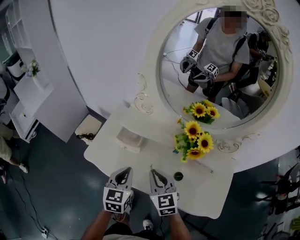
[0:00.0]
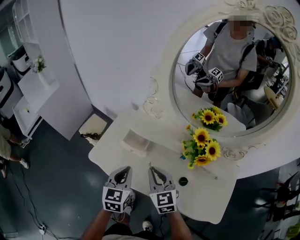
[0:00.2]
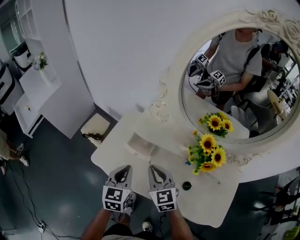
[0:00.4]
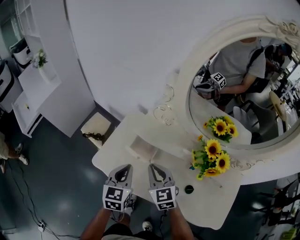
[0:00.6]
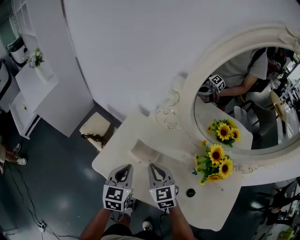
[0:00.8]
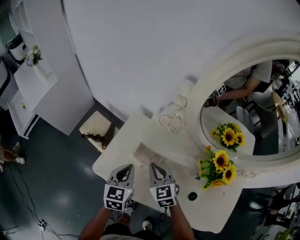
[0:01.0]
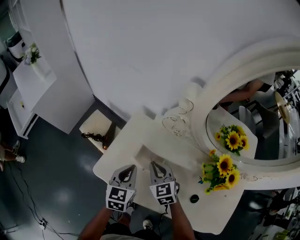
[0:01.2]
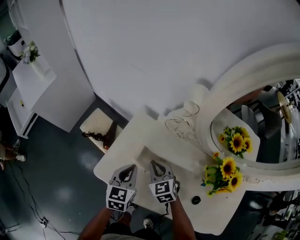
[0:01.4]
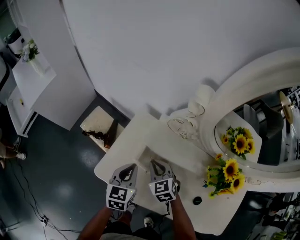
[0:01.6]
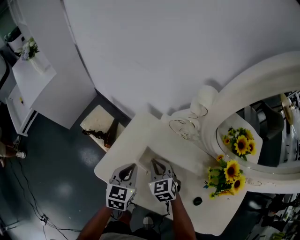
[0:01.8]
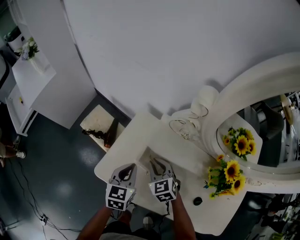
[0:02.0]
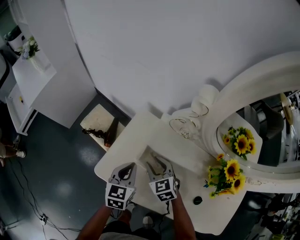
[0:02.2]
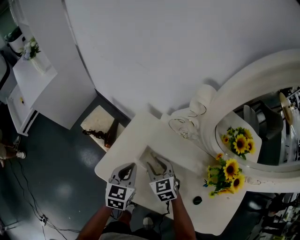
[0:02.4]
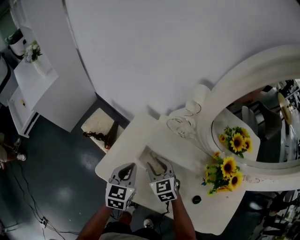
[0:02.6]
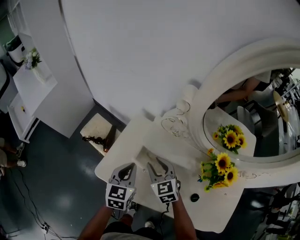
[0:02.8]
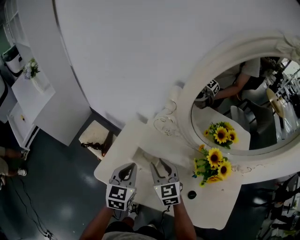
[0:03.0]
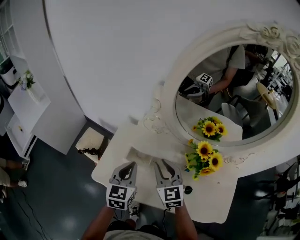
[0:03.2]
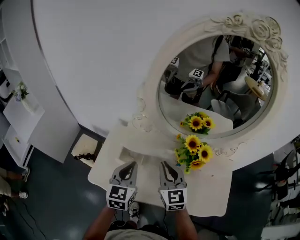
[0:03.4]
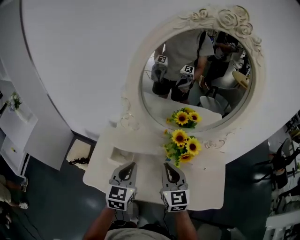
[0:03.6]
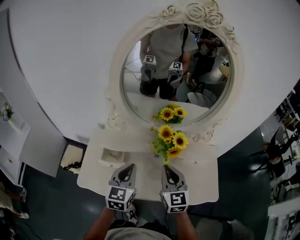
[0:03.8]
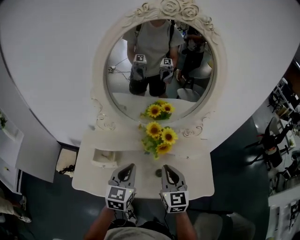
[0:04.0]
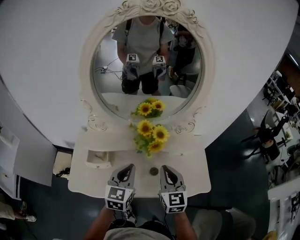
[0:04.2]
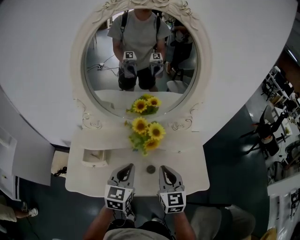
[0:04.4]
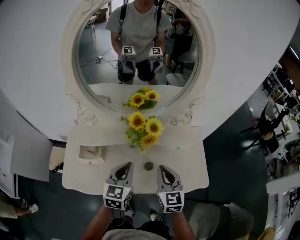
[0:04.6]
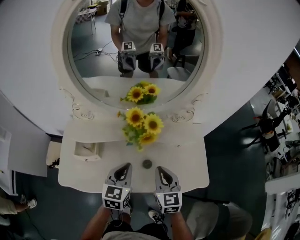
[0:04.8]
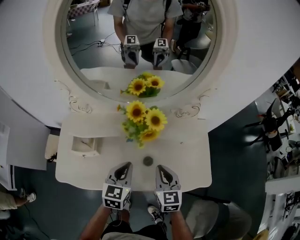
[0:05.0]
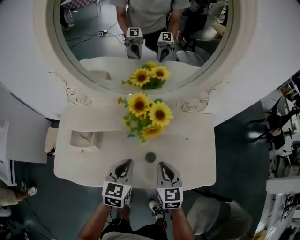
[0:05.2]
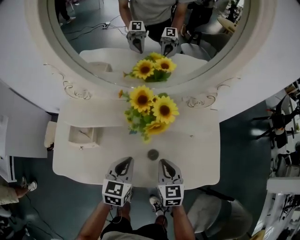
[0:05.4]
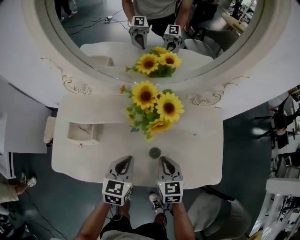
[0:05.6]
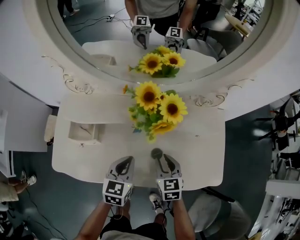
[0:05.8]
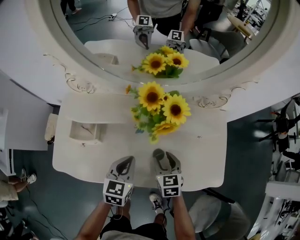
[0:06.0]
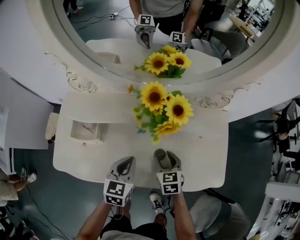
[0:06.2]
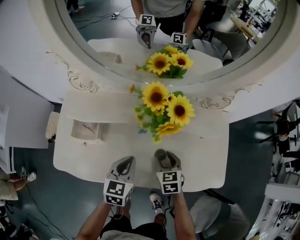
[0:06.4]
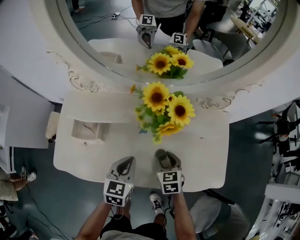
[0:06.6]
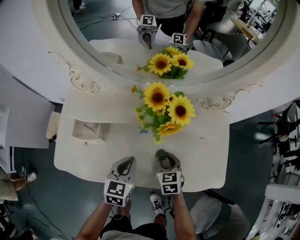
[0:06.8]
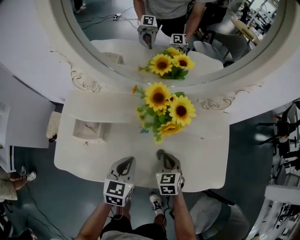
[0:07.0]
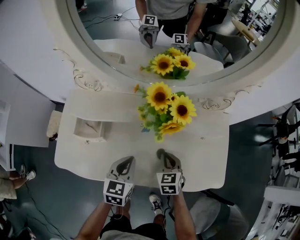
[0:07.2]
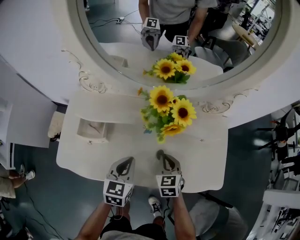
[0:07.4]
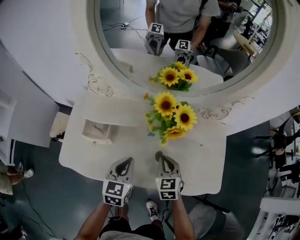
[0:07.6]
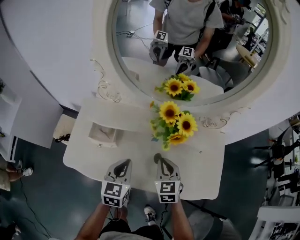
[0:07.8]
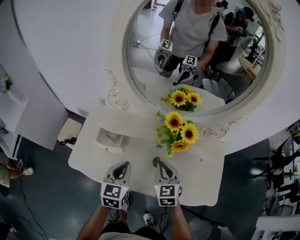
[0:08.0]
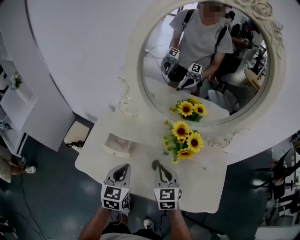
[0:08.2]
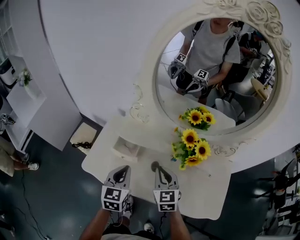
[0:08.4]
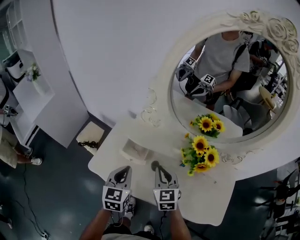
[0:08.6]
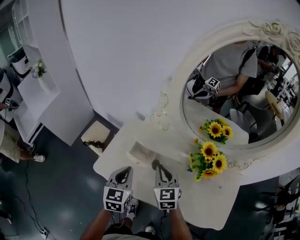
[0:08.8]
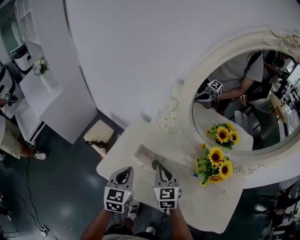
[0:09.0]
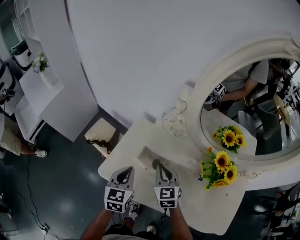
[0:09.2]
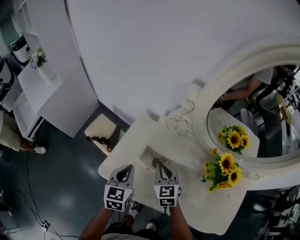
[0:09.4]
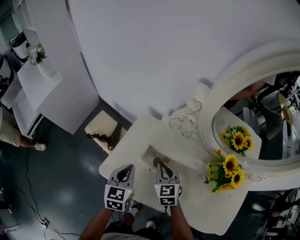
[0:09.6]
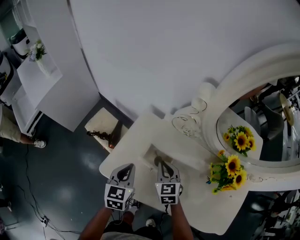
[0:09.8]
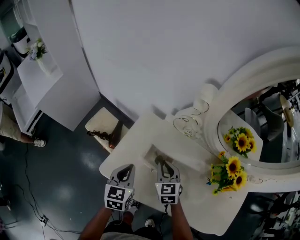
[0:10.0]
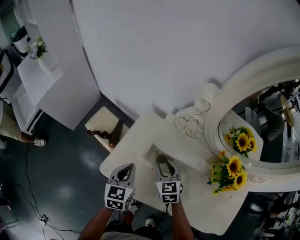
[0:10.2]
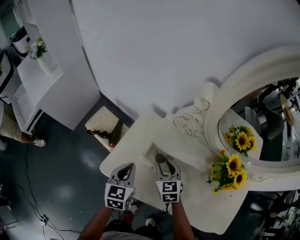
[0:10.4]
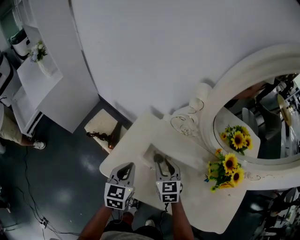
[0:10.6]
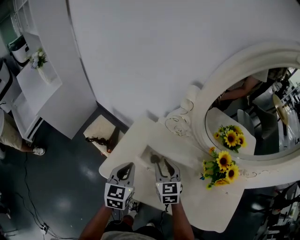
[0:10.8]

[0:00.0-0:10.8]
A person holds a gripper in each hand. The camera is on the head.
0:00.0 to 0:01.6: The left gripper goes some 20 cm forward and to the left; the right gripper shifts about 25 cm forward, to the left and downward, and swivels roughly 20 degrees.
0:01.6 to 0:03.0: Both grippers travel together upward, approximately 10 cm. The right gripper opens.
0:03.0 to 0:04.6: The left gripper ends up about 30 cm from where it was, and swivels roughly 30 degrees. Meanwhile the right gripper changes place by about 35 cm, rotates approximately 40 degrees, and closes up.
0:04.6 to 0:06.2: The grippers both shift downward by about 20 cm. The right gripper rotates roughly 30 degrees, and opens.
0:06.2 to 0:07.8: Both grippers travel together upward and to the left, some 10 cm. The right gripper closes.
0:07.8 to 0:09.2: The right gripper heads to the left and forward, covering approximately 25 cm, and swivels about 20 degrees; the left gripper travels to the left by approximately 20 cm, and swivels some 20 degrees.
0:09.2 to 0:10.8: The right gripper opens up.

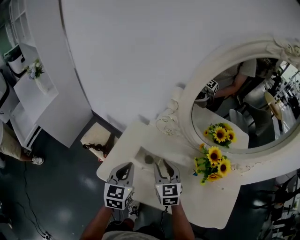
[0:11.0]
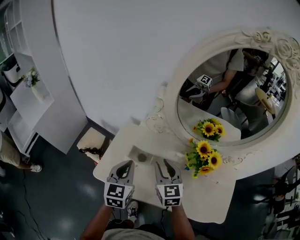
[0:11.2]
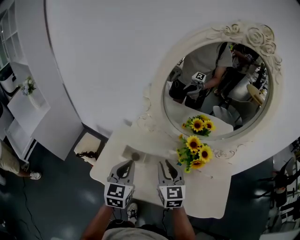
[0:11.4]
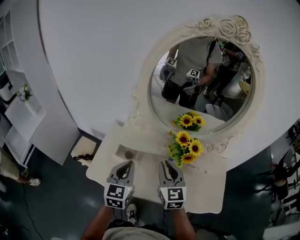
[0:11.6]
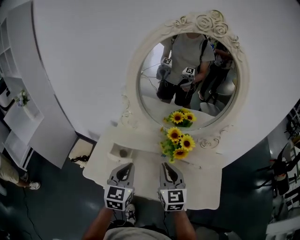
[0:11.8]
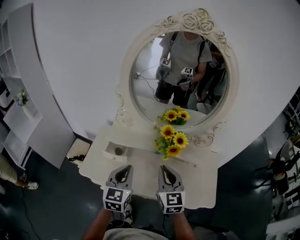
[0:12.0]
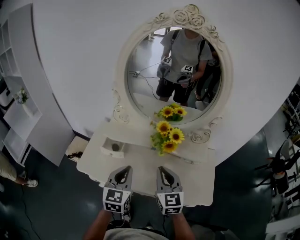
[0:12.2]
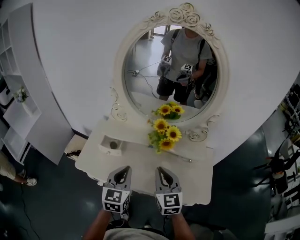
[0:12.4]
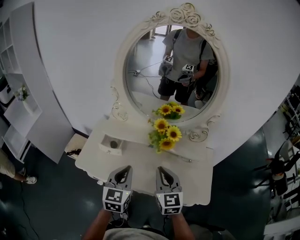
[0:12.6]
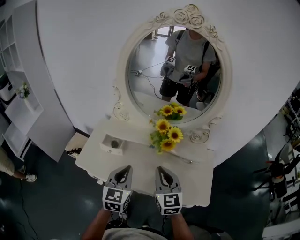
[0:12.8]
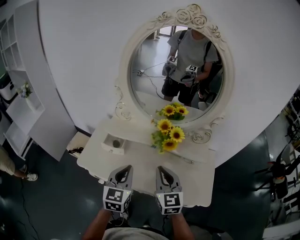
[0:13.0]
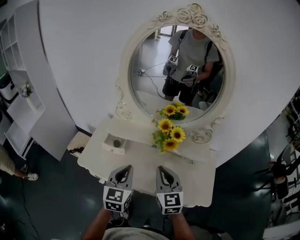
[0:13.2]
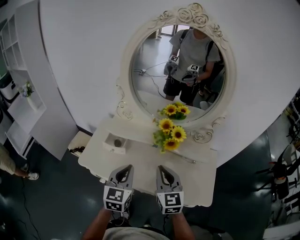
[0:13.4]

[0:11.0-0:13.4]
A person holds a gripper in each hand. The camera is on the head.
0:11.0 to 0:12.2: The right gripper is displaced to the right, backward and upward by approximately 30 cm, changes its angle by some 20 degrees, and closes up. Meanwhile the left gripper goes roughly 25 cm to the right and backward.
0:12.2 to 0:13.4: There are only small adjustments of the grippers.

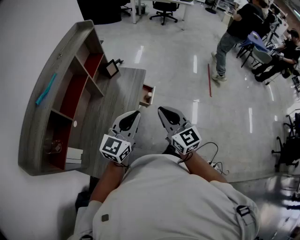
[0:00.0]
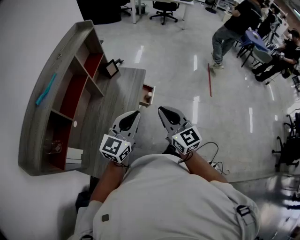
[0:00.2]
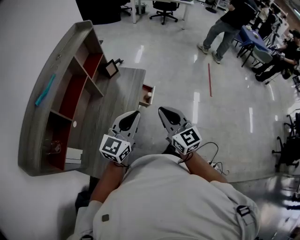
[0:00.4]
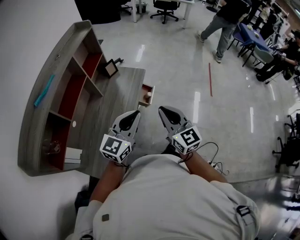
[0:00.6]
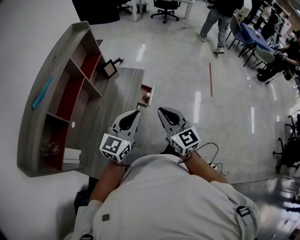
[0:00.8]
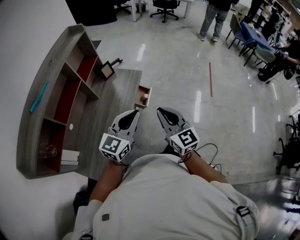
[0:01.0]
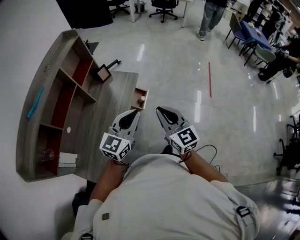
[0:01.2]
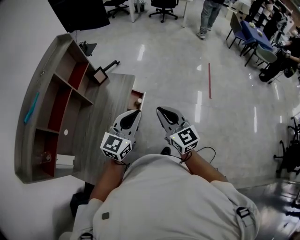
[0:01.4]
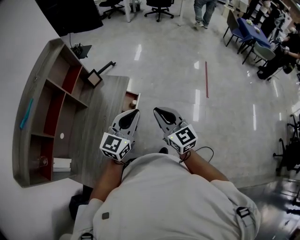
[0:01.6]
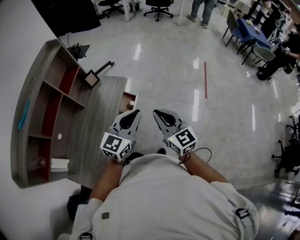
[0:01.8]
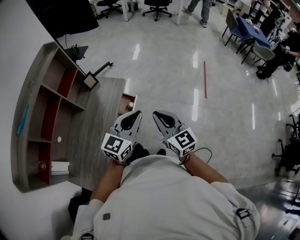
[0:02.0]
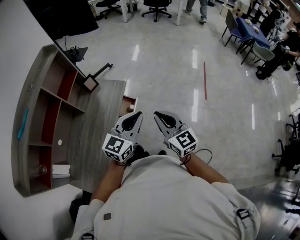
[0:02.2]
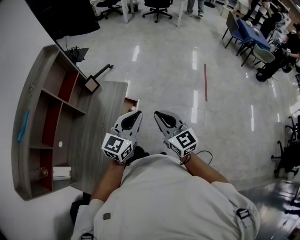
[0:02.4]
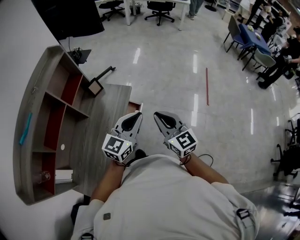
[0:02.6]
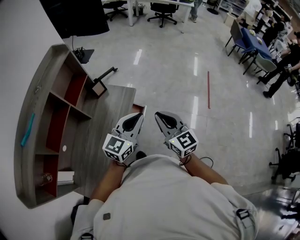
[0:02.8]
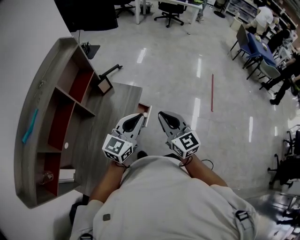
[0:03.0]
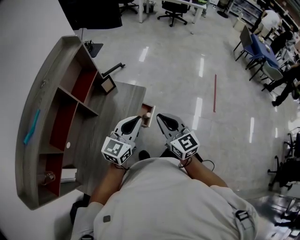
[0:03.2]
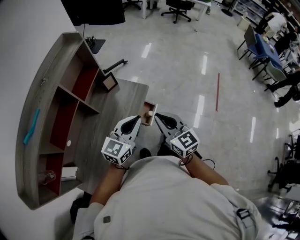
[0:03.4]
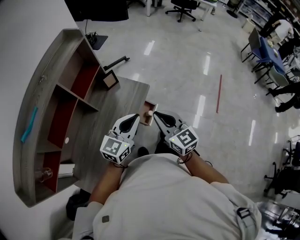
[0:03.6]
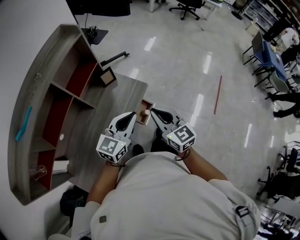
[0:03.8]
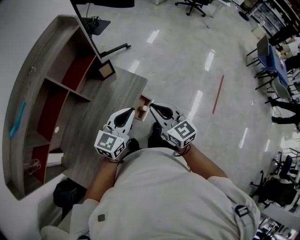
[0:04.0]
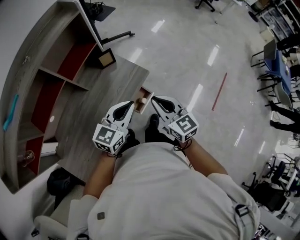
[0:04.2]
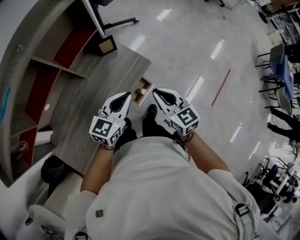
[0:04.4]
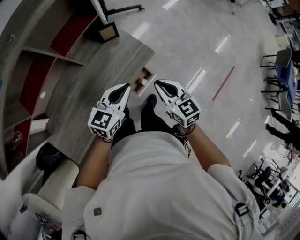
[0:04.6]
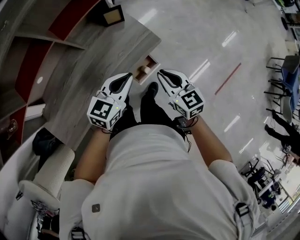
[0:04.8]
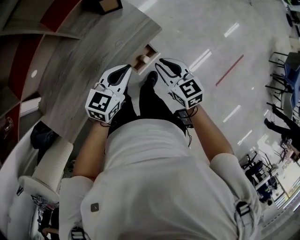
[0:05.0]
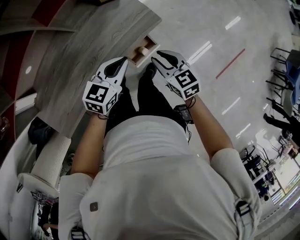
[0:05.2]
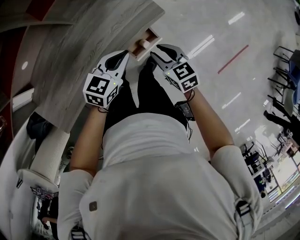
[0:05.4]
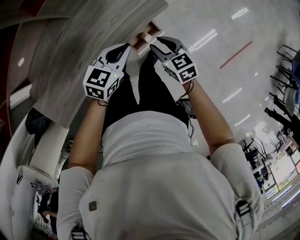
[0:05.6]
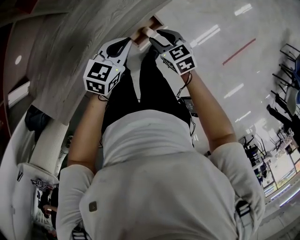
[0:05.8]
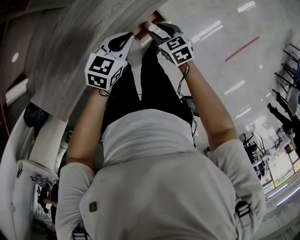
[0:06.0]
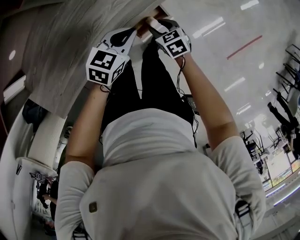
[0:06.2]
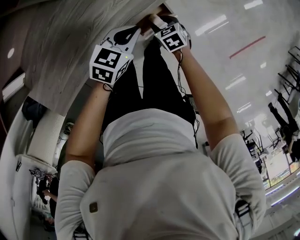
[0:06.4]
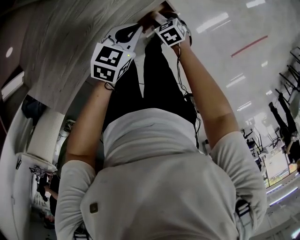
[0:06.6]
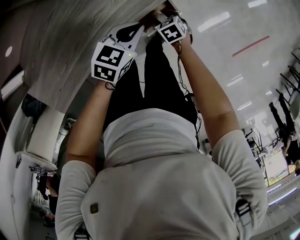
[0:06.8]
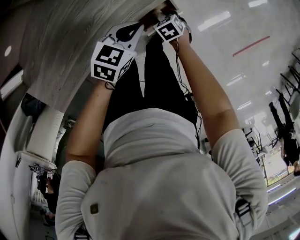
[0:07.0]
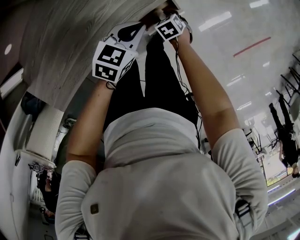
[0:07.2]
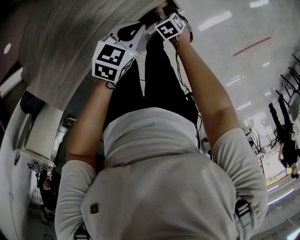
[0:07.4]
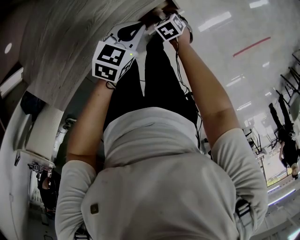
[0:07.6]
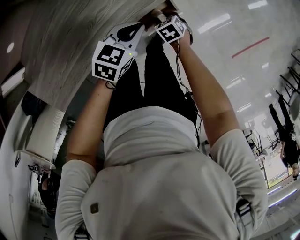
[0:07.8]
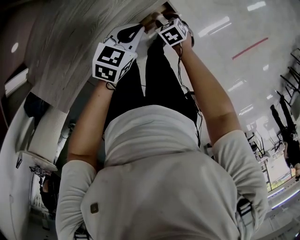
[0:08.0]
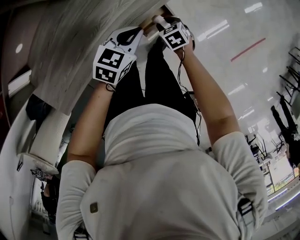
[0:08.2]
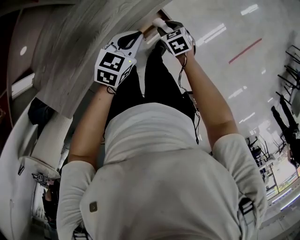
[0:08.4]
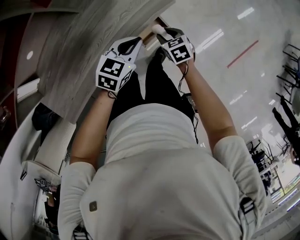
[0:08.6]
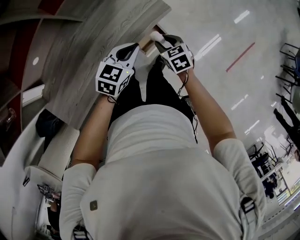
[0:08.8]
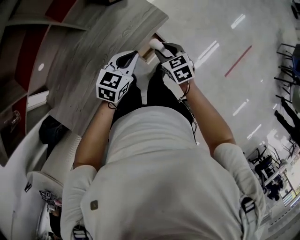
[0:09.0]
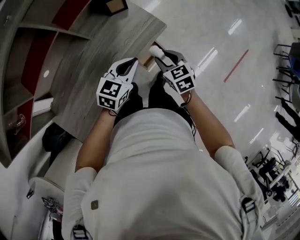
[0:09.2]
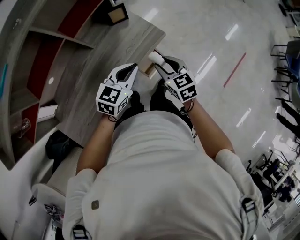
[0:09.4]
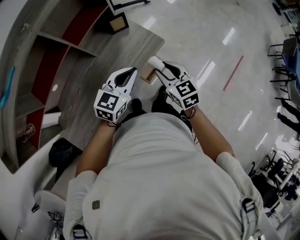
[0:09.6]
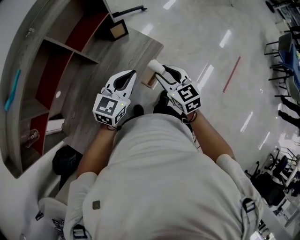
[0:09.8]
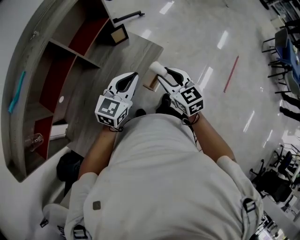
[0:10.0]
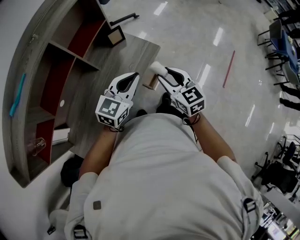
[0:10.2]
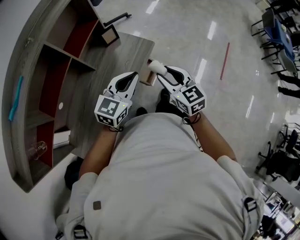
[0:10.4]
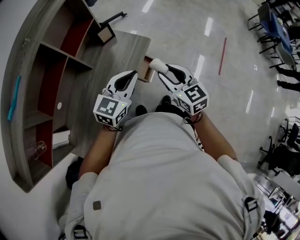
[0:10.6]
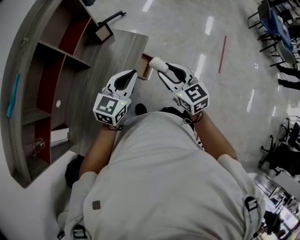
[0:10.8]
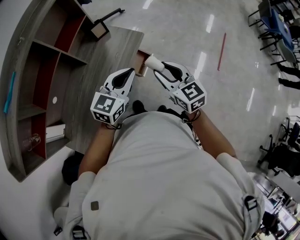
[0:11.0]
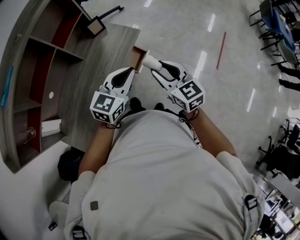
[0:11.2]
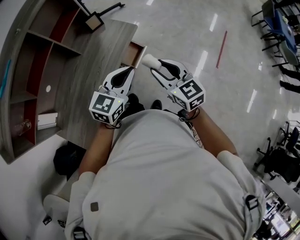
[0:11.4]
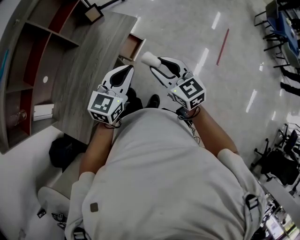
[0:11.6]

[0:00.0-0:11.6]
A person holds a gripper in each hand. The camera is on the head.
0:00.0 to 0:01.4: Both grippers move to the right and forward, some 15 cm.
0:01.4 to 0:02.8: Both grippers move forward, some 10 cm.
0:02.8 to 0:04.4: The right gripper moves forward and downward, approximately 25 cm, and turns by roughly 30 degrees. The left gripper shifts roughly 20 cm forward, downward and to the left, and rotates about 30 degrees.
0:04.4 to 0:05.8: The two grippers go roughly 25 cm downward. The left gripper swivels some 20 degrees. Meanwhile the right gripper swivels approximately 30 degrees, and opens up.
0:05.8 to 0:07.2: The left gripper is displaced downward by some 10 cm. Meanwhile the right gripper moves downward, some 20 cm, and changes its angle by some 30 degrees.
0:07.2 to 0:08.8: The right gripper is displaced upward by about 25 cm, and changes its angle by about 20 degrees, while the left gripper travels upward by about 15 cm.
0:08.8 to 0:10.2: Both grippers move upward, roughly 25 cm. The left gripper rotates approximately 30 degrees; the right gripper swivels about 30 degrees.
0:10.2 to 0:11.6: Both grippers move backward and to the right, roughly 20 cm.
